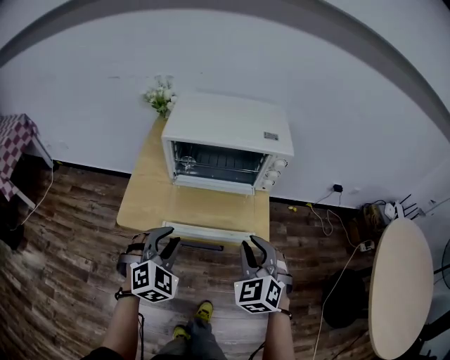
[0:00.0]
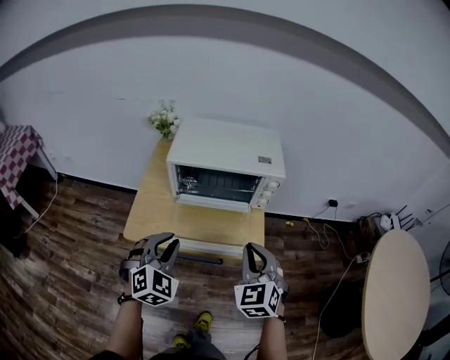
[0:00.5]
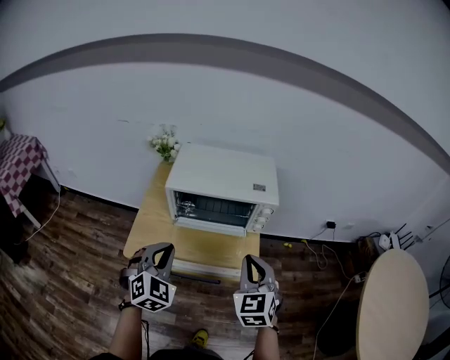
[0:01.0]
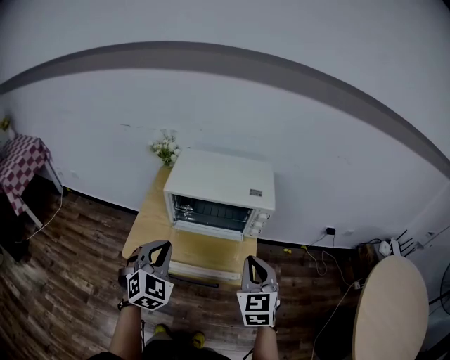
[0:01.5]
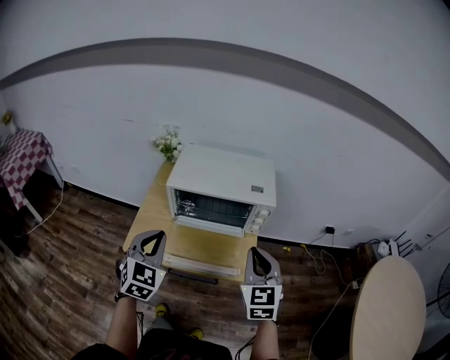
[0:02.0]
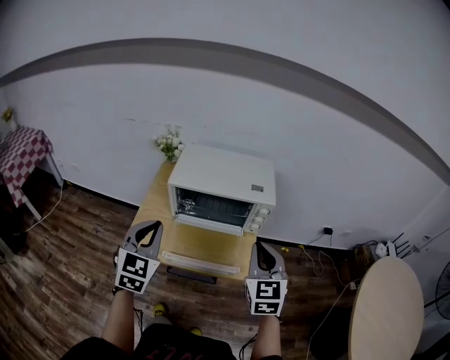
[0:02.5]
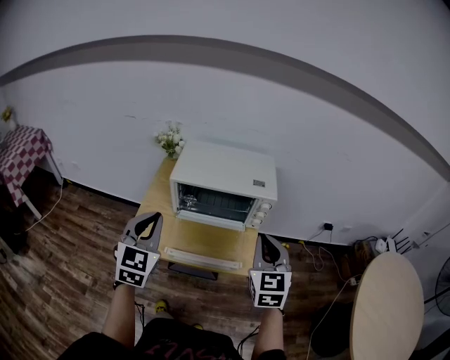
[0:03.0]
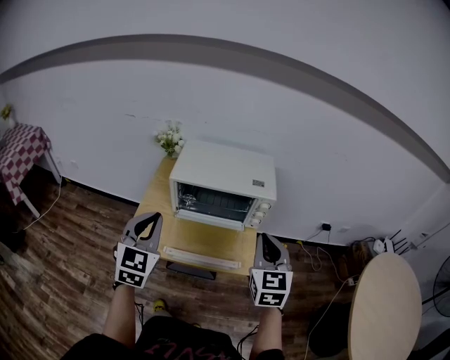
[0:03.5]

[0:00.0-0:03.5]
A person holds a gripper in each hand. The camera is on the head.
0:00.0 to 0:02.0: Both grippers travel together upward, about 15 cm. The right gripper turns by about 30 degrees, while the left gripper changes its angle by roughly 30 degrees, and closes up.
0:02.0 to 0:03.5: The left gripper shifts approximately 5 cm upward.

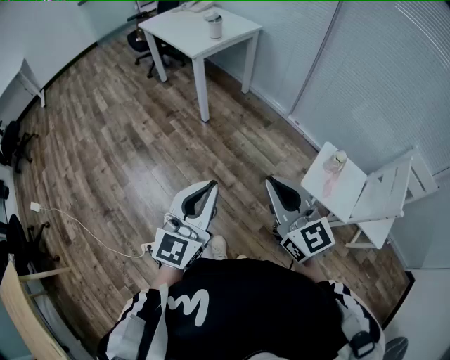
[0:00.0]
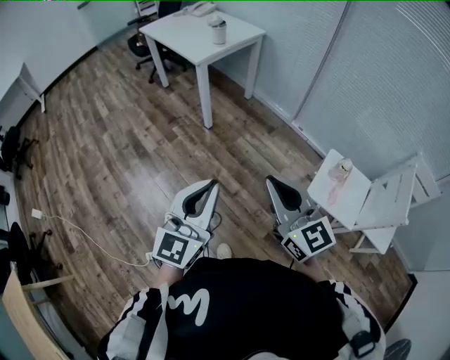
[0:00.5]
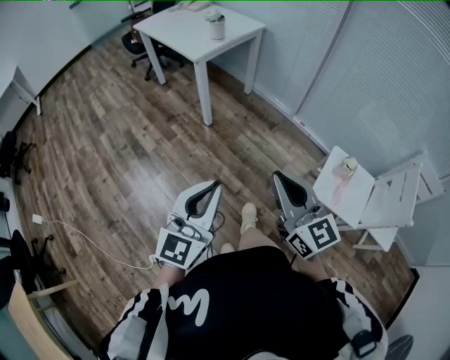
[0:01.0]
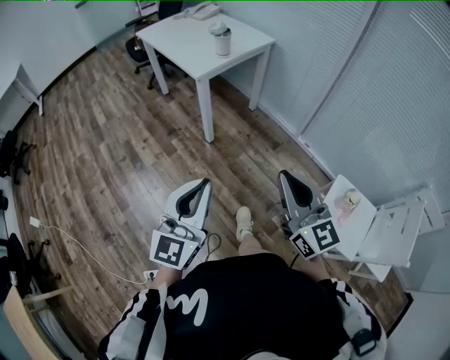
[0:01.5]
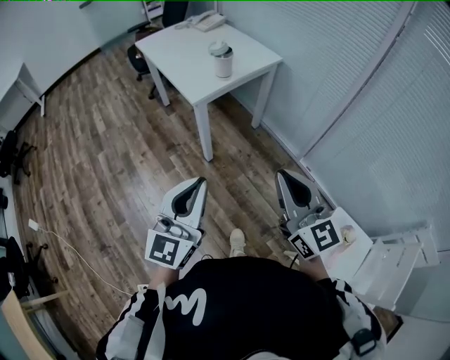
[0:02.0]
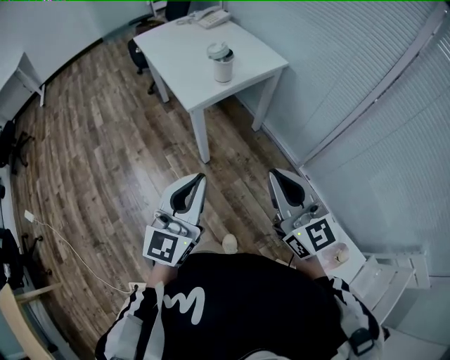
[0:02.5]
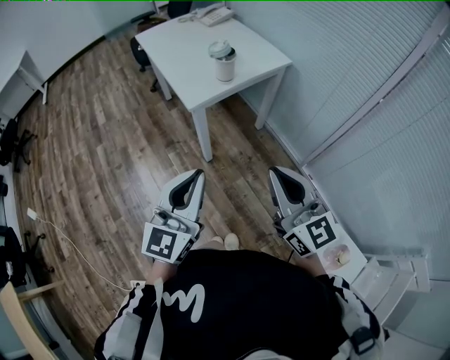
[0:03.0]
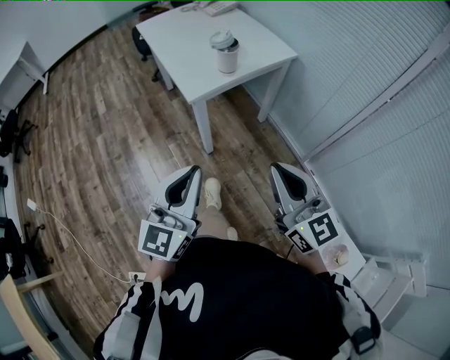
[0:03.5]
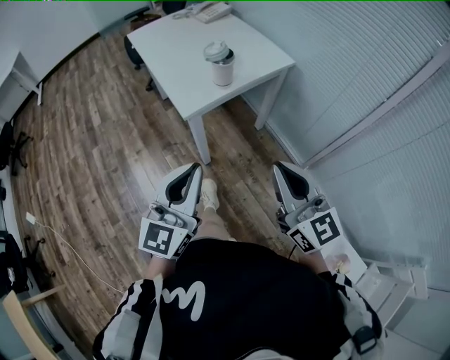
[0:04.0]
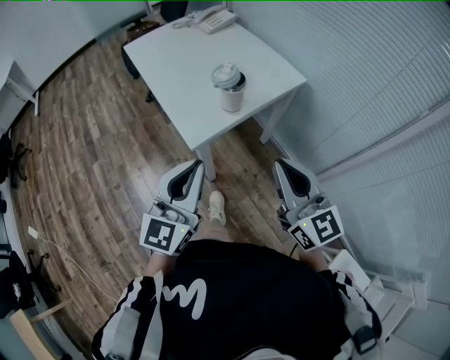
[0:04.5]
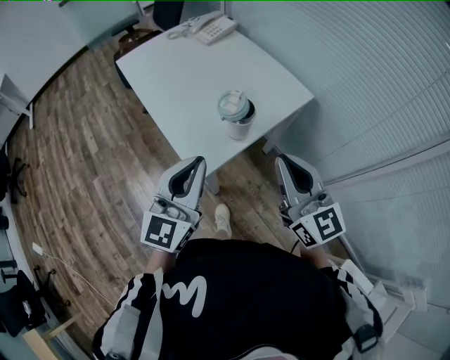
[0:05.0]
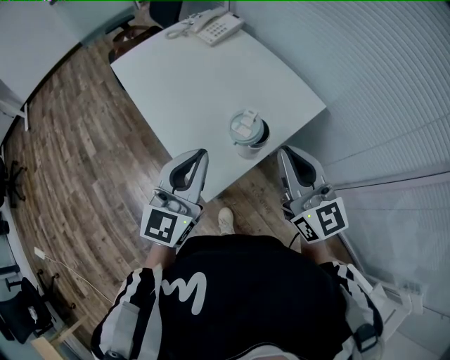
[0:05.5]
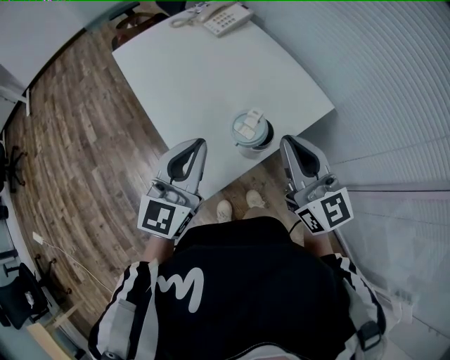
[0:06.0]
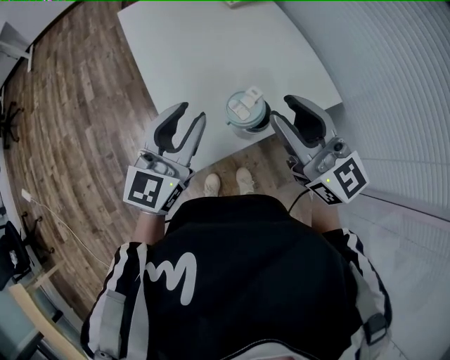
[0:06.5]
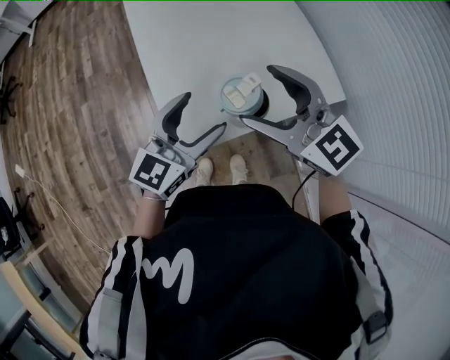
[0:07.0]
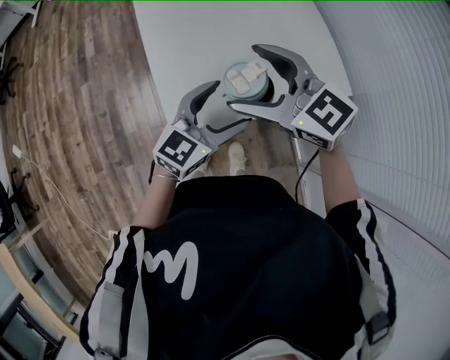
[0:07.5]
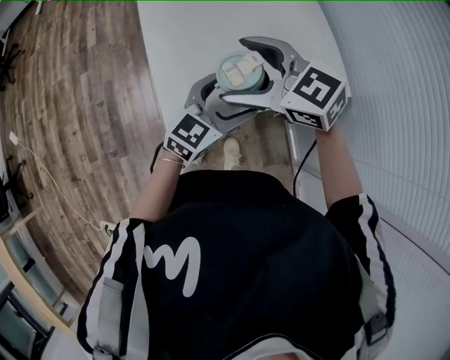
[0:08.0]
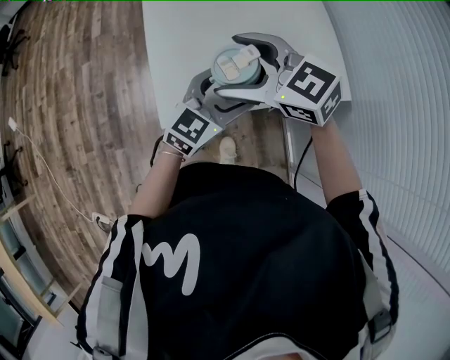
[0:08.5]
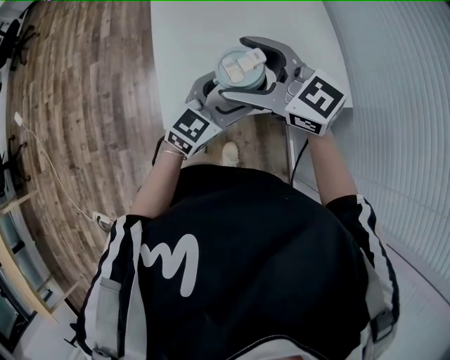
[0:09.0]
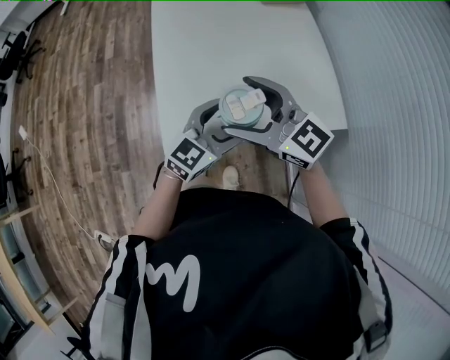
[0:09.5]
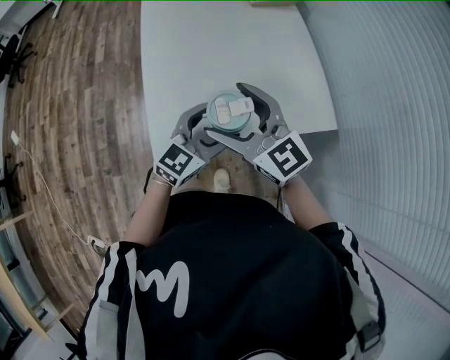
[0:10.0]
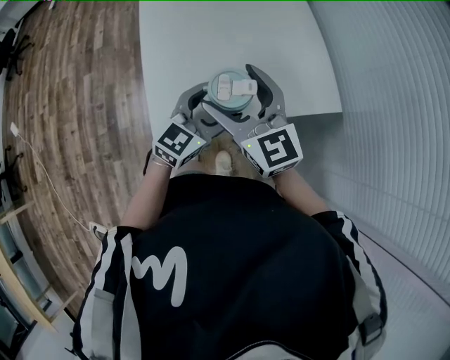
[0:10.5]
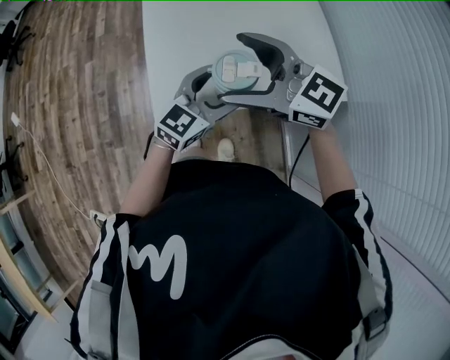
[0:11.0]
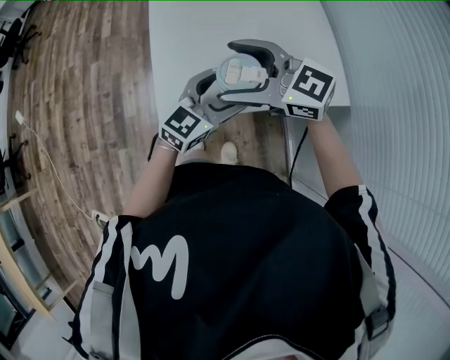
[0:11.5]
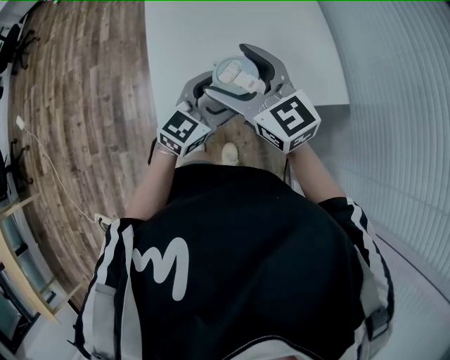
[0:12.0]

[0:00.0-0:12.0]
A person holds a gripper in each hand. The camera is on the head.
0:00.0 to 0:02.0: The two grippers go approximately 40 cm forward.
0:02.0 to 0:04.0: The two grippers go about 20 cm forward.
0:04.0 to 0:06.0: The grippers both shift forward by approximately 40 cm.
0:06.0 to 0:08.0: The left gripper moves downward, roughly 15 cm, and opens. Meanwhile the right gripper ends up roughly 15 cm from where it was, swivels approximately 60 degrees, and opens up.
0:08.0 to 0:10.0: The right gripper turns by approximately 20 degrees.

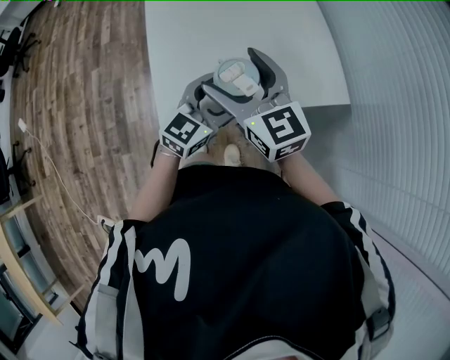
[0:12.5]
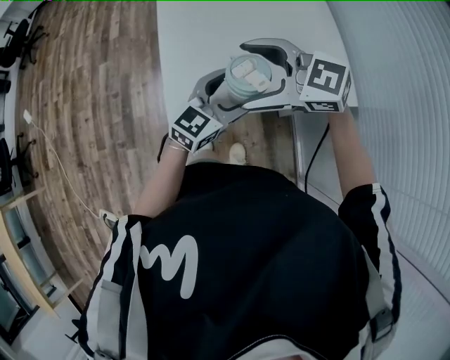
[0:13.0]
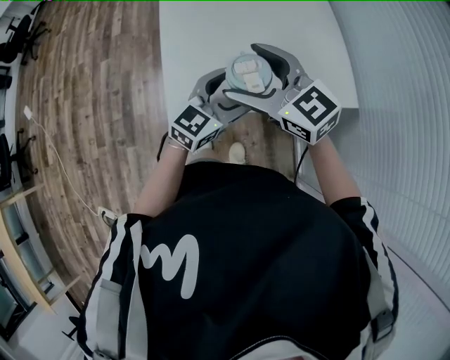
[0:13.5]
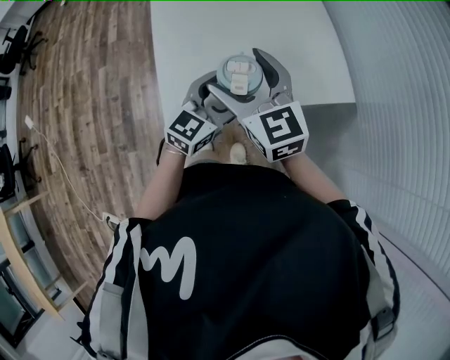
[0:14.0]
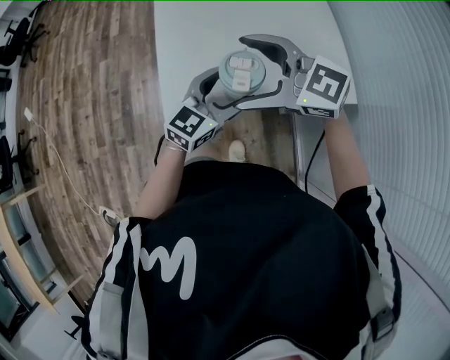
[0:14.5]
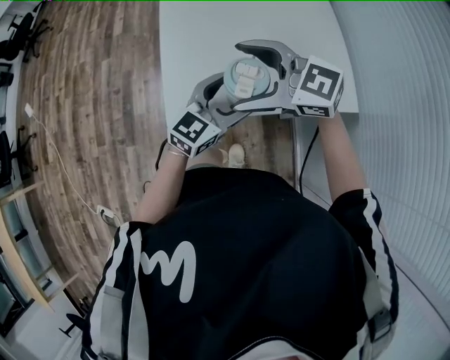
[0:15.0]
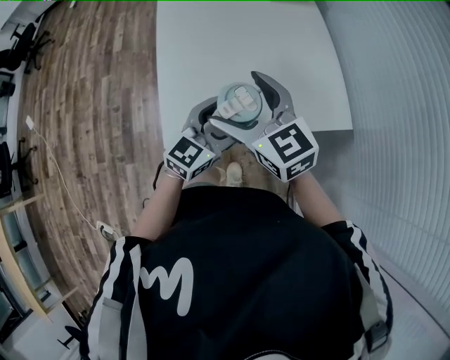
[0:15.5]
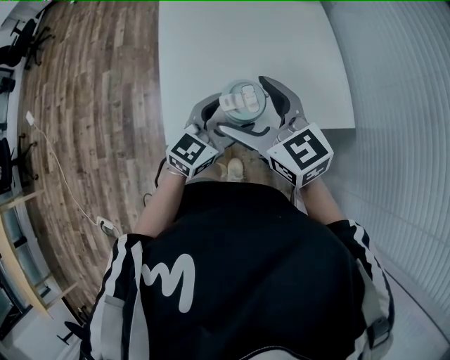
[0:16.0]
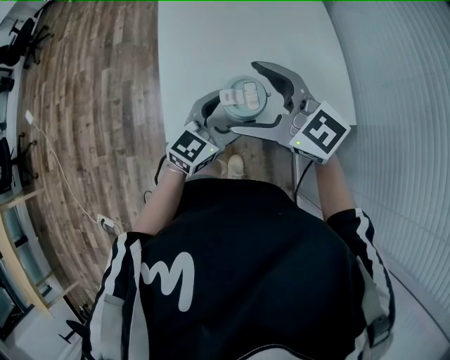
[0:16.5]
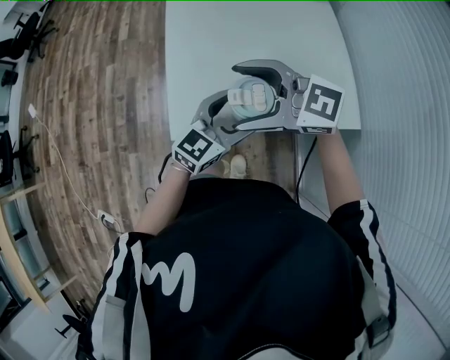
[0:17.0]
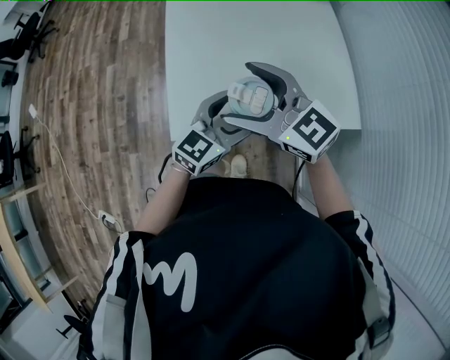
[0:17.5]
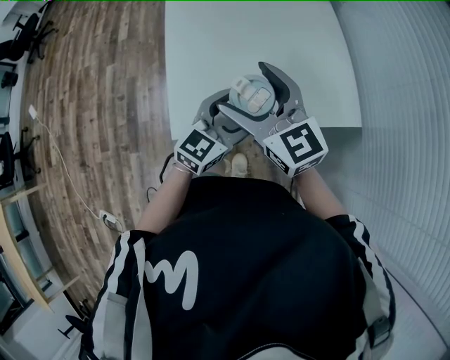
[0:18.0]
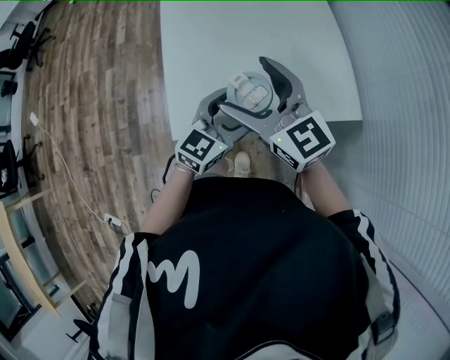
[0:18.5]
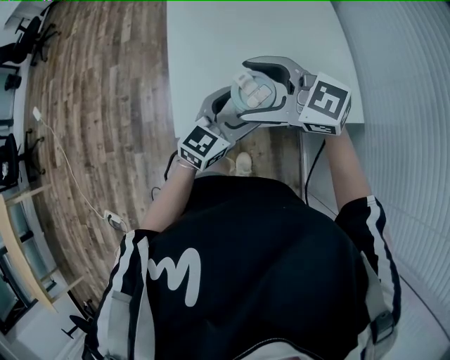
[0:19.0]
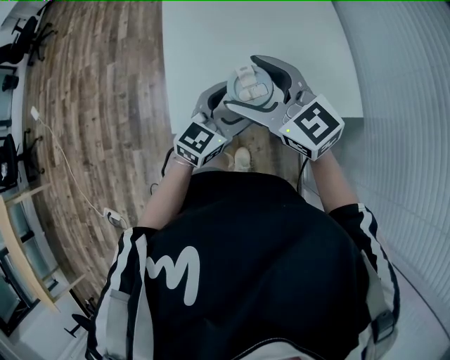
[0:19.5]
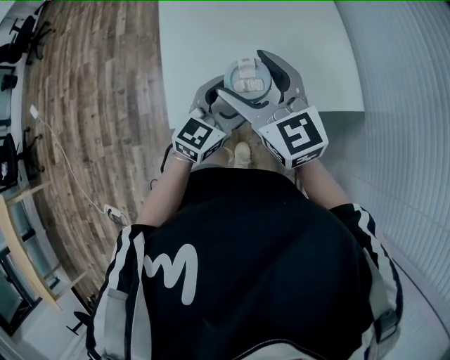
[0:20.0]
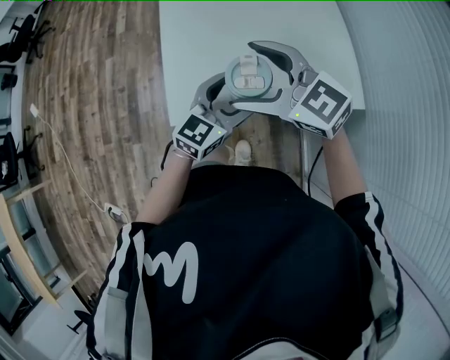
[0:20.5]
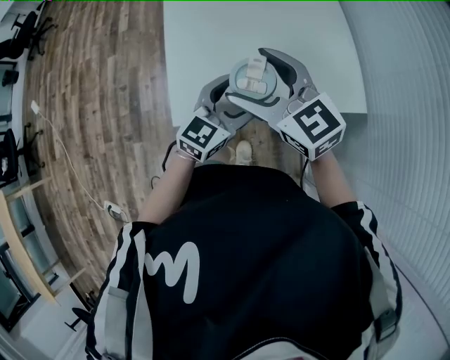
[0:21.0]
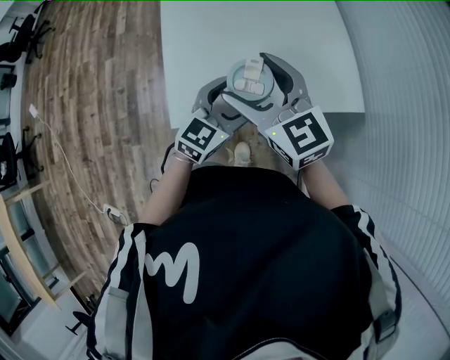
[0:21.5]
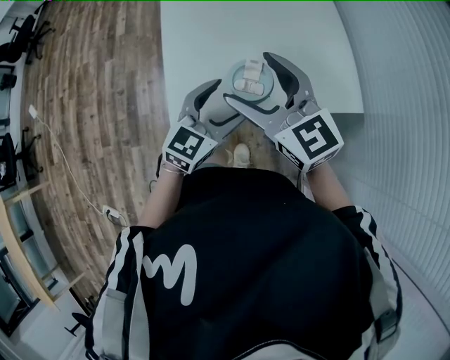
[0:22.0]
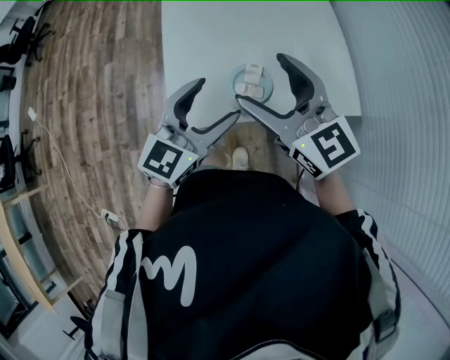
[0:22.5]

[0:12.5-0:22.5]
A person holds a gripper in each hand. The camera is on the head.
0:12.5 to 0:14.5: The right gripper swivels approximately 50 degrees.
0:16.5 to 0:18.5: The right gripper changes its angle by roughly 20 degrees.
0:18.5 to 0:20.5: The right gripper turns by some 30 degrees.
0:20.5 to 0:22.5: The left gripper is displaced upward and to the left by about 10 cm, while the right gripper heads upward, covering about 5 cm, and changes its angle by roughly 30 degrees.

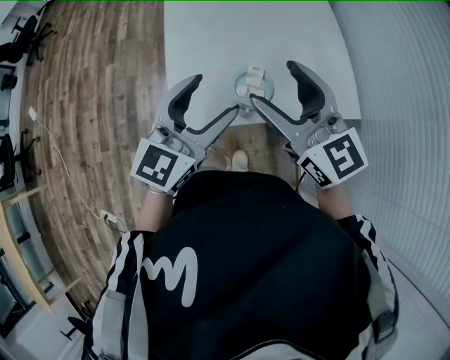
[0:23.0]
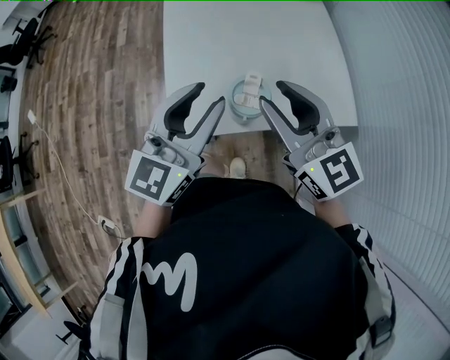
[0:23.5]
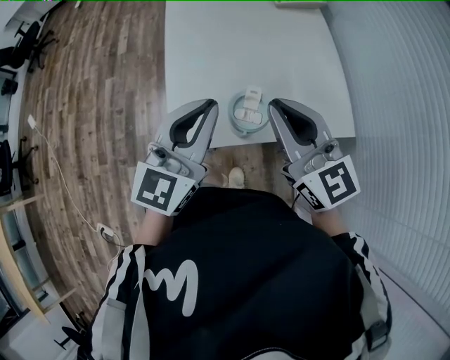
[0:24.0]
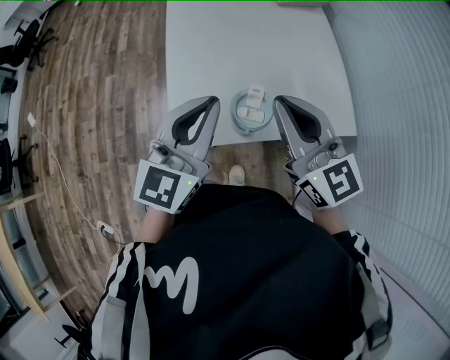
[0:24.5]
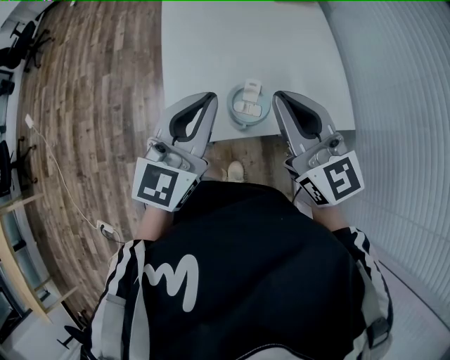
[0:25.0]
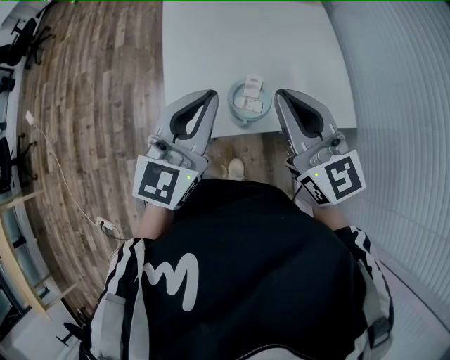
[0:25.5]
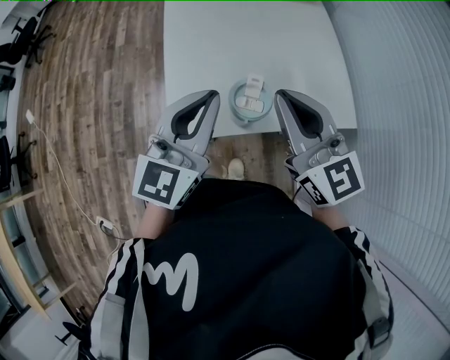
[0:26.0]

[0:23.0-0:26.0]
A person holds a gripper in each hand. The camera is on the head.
0:23.0 to 0:24.5: The right gripper closes its fingers. Meanwhile the left gripper closes up.
0:24.5 to 0:26.0: Neither gripper changes place.
